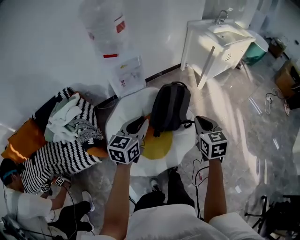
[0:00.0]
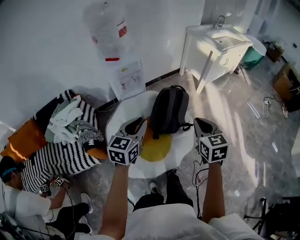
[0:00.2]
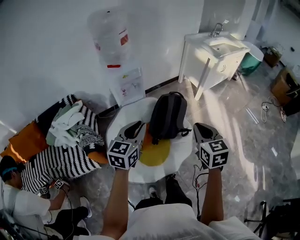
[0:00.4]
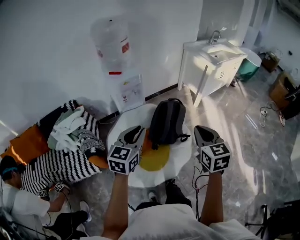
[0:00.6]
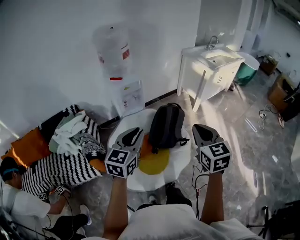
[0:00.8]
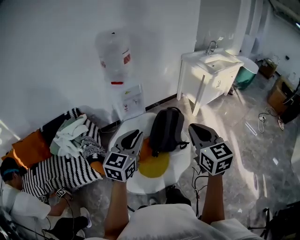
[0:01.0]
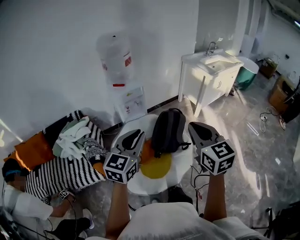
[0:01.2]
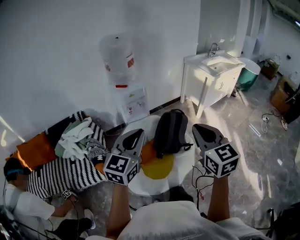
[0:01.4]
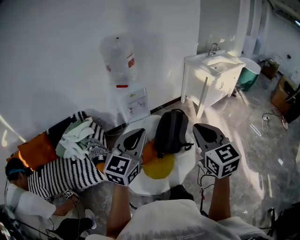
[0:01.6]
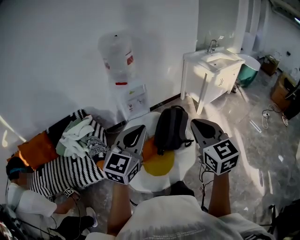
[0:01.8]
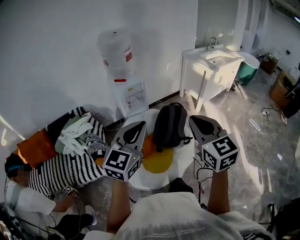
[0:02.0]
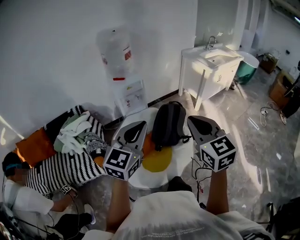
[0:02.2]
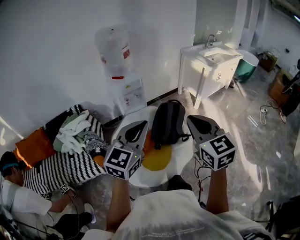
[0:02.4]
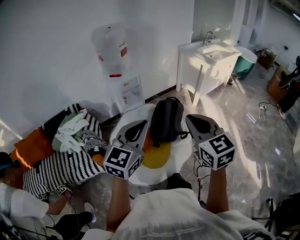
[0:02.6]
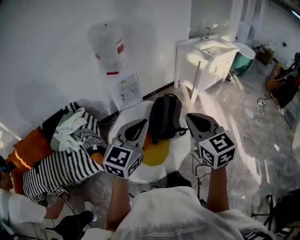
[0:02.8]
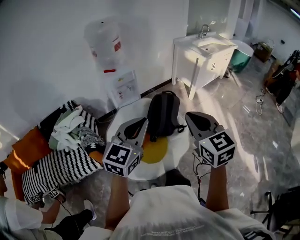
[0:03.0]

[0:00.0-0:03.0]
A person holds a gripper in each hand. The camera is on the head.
0:00.0 to 0:01.6: The grippers both shift upward and backward by roughly 25 cm. The right gripper swivels some 20 degrees, while the left gripper turns by approximately 30 degrees.
0:01.6 to 0:03.0: The left gripper changes place by approximately 5 cm.

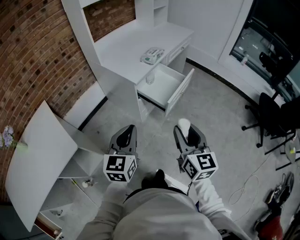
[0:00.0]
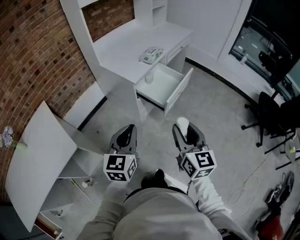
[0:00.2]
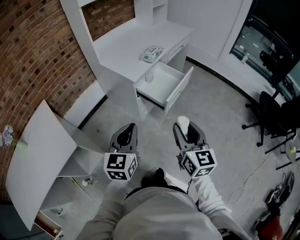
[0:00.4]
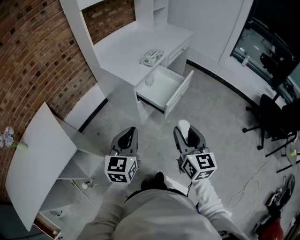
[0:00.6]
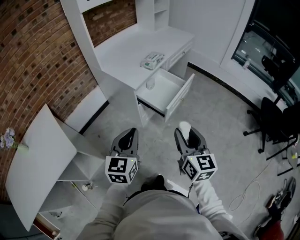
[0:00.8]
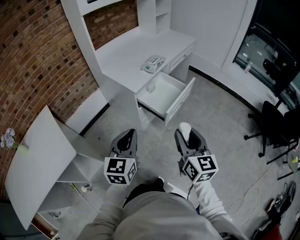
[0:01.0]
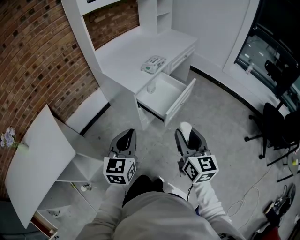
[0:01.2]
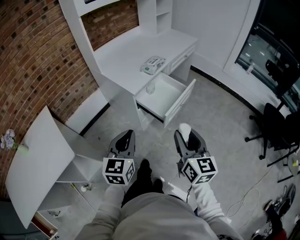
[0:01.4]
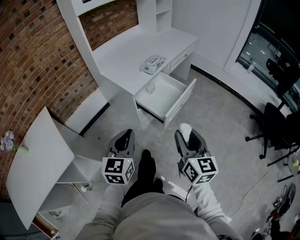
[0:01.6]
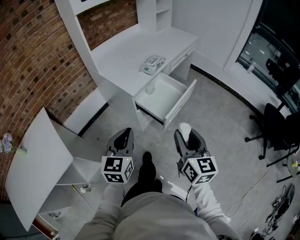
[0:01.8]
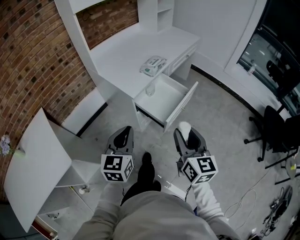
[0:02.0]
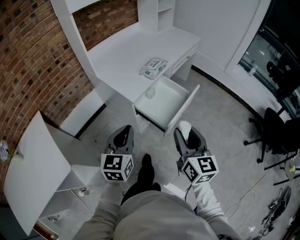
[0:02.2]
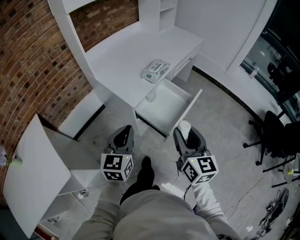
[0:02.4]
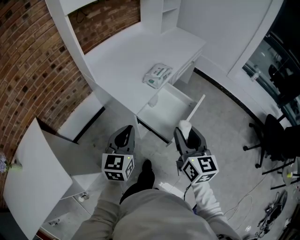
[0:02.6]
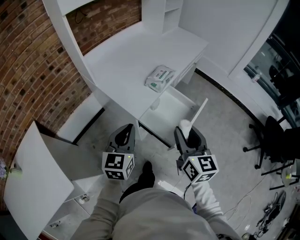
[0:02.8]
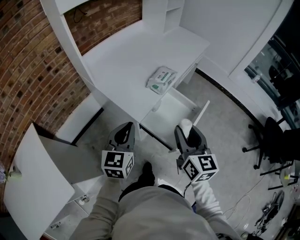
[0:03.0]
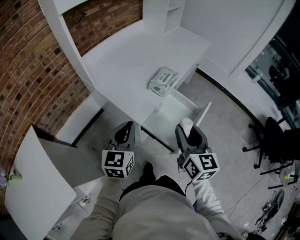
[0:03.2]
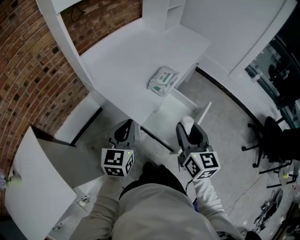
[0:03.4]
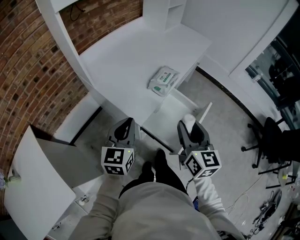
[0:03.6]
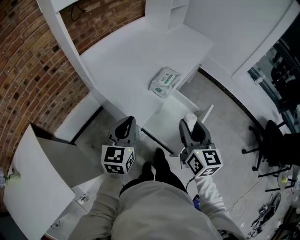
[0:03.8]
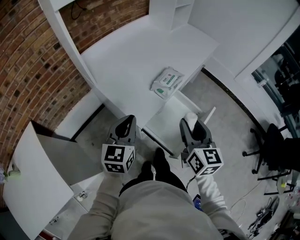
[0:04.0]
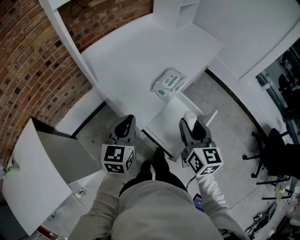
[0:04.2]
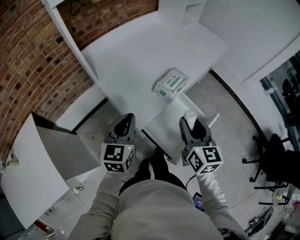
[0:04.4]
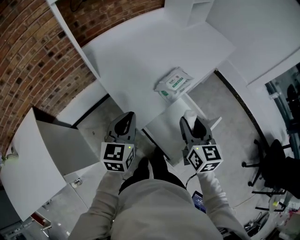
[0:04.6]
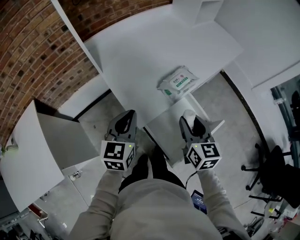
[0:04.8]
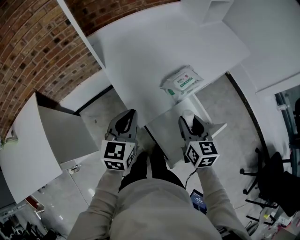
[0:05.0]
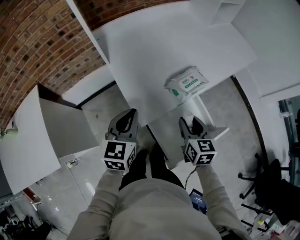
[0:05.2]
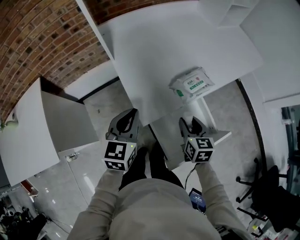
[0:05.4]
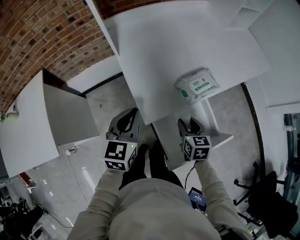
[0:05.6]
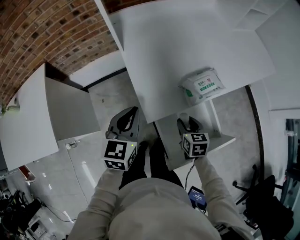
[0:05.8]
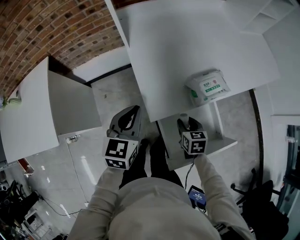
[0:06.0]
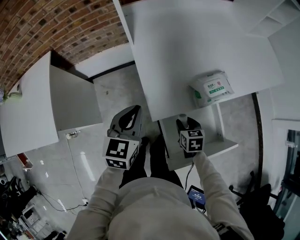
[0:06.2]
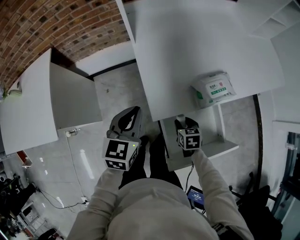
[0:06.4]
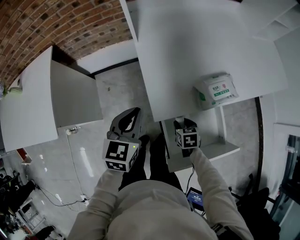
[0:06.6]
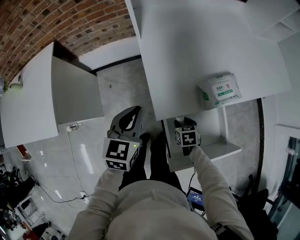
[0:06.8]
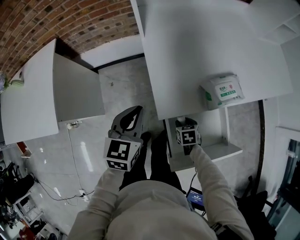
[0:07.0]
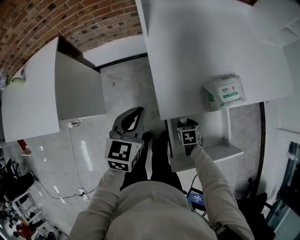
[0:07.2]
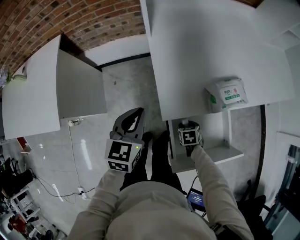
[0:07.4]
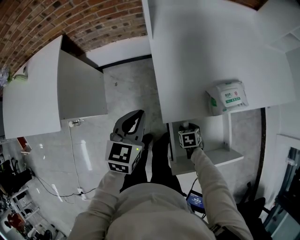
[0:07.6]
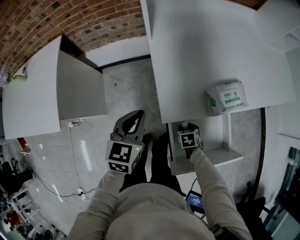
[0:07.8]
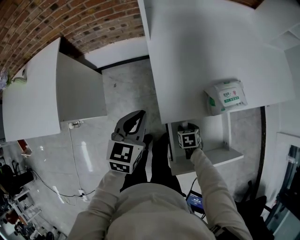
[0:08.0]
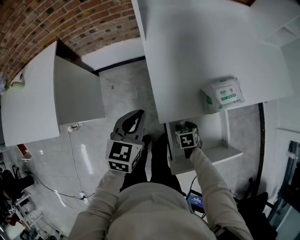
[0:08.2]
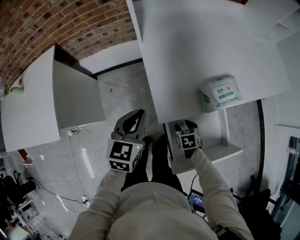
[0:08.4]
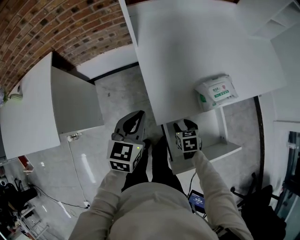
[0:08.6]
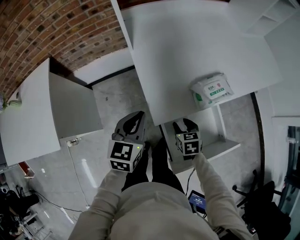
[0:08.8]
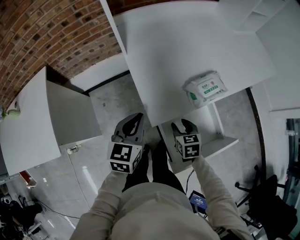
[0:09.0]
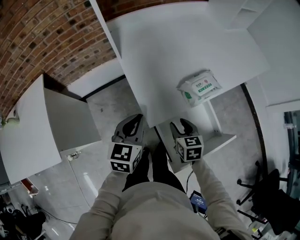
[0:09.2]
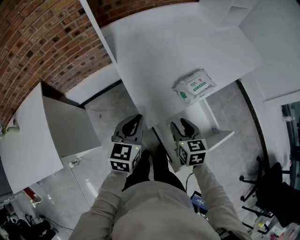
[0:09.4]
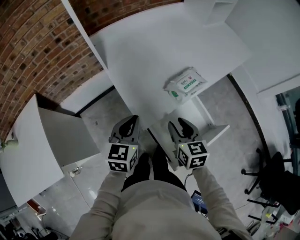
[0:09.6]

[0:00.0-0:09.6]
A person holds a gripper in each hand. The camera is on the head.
0:00.0 to 0:01.6: Both grippers move forward, approximately 5 cm.
0:01.6 to 0:03.2: The two grippers go approximately 25 cm forward.
0:03.2 to 0:04.8: The left gripper moves forward, some 10 cm. The right gripper is displaced forward and downward by roughly 15 cm.
0:04.8 to 0:06.4: The left gripper shifts about 10 cm downward and to the left, and swivels approximately 20 degrees. Meanwhile the right gripper is displaced downward by about 25 cm, and tilts its fingers some 40 degrees downward.
0:06.4 to 0:08.0: The right gripper travels downward by about 10 cm.
0:08.0 to 0:09.6: The right gripper heads upward, covering roughly 25 cm, and angles its fingers upward, by roughly 40 degrees; the left gripper heads to the right, covering approximately 5 cm.

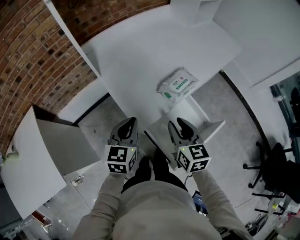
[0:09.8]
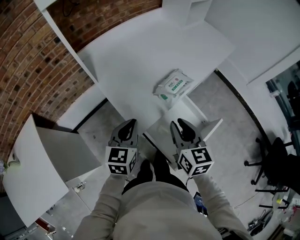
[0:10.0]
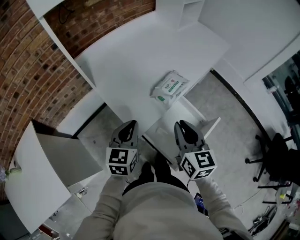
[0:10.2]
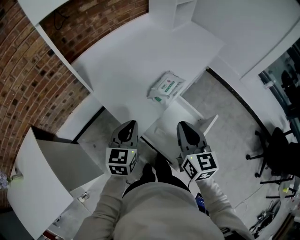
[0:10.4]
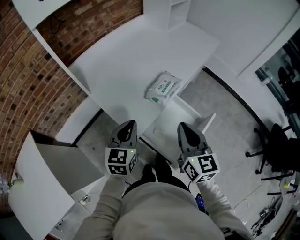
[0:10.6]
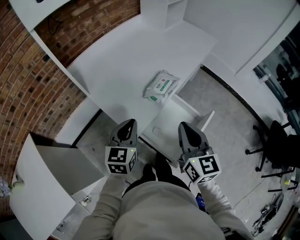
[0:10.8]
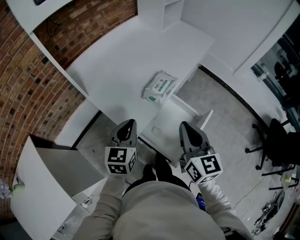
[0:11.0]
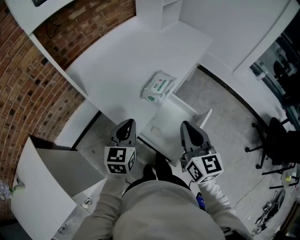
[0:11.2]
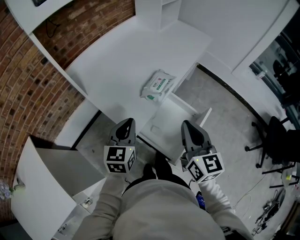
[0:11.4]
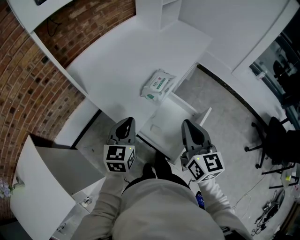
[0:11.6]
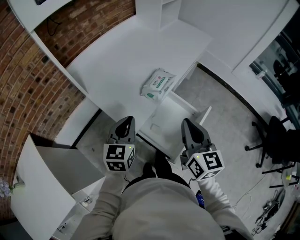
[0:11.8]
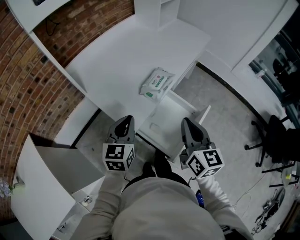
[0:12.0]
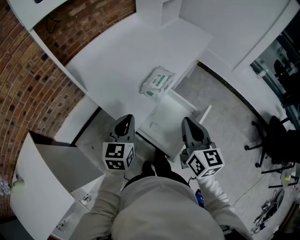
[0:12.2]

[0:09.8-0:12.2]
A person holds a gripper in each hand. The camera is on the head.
0:09.8 to 0:11.0: The right gripper heads upward and to the right, covering about 10 cm, turns by roughly 20 degrees, and closes.
0:11.0 to 0:12.2: There are only small adjustments of the grippers.

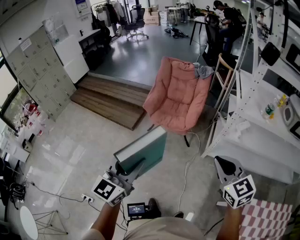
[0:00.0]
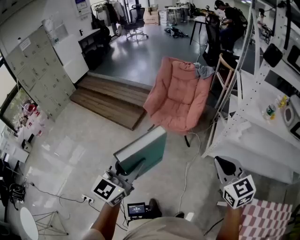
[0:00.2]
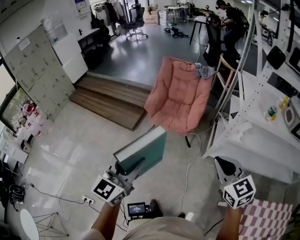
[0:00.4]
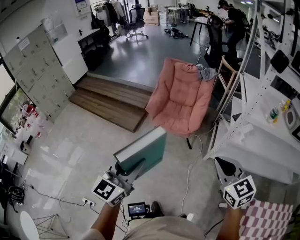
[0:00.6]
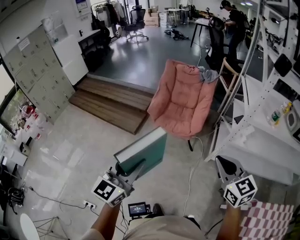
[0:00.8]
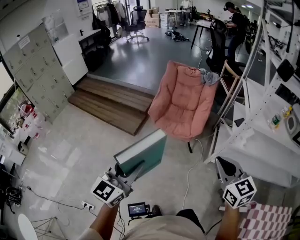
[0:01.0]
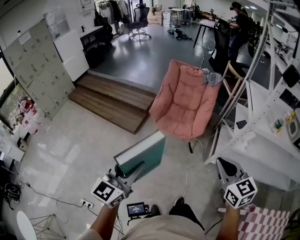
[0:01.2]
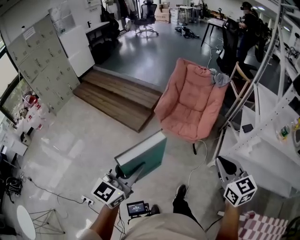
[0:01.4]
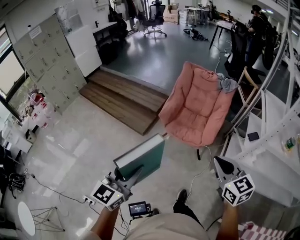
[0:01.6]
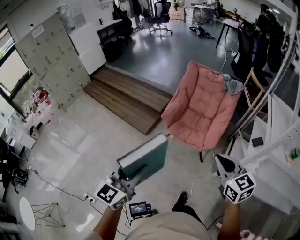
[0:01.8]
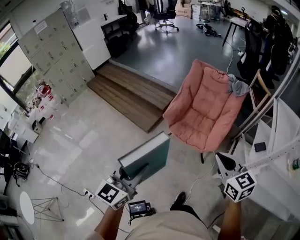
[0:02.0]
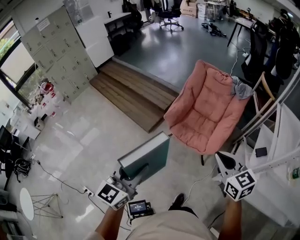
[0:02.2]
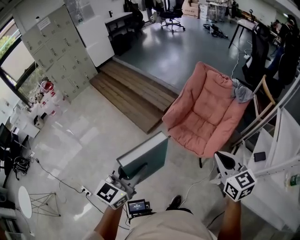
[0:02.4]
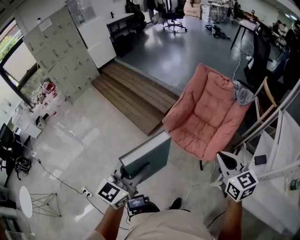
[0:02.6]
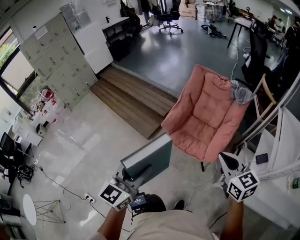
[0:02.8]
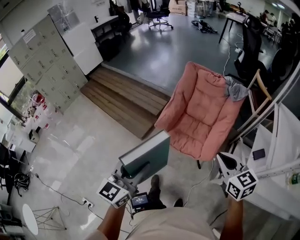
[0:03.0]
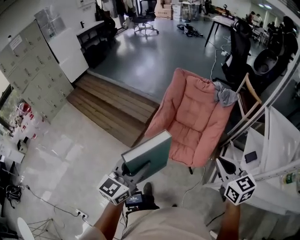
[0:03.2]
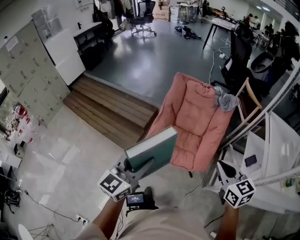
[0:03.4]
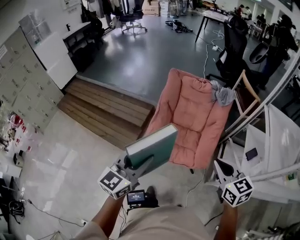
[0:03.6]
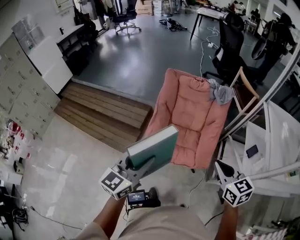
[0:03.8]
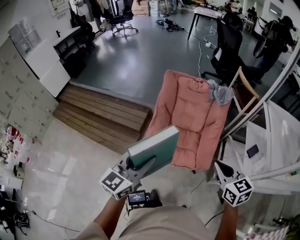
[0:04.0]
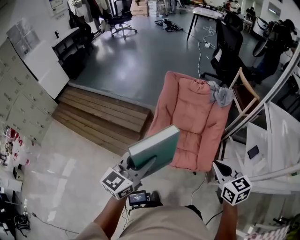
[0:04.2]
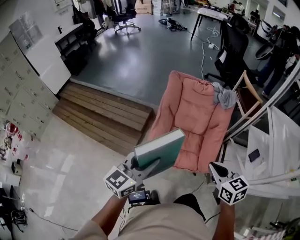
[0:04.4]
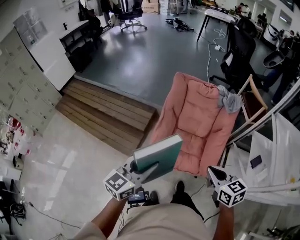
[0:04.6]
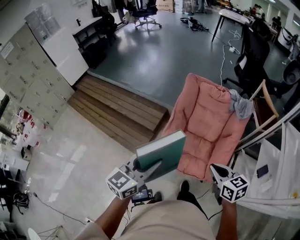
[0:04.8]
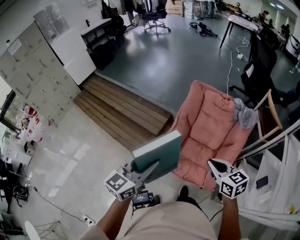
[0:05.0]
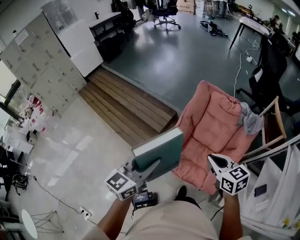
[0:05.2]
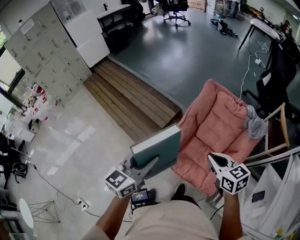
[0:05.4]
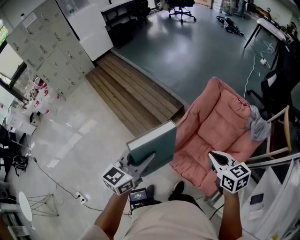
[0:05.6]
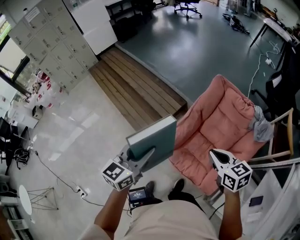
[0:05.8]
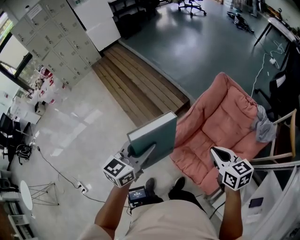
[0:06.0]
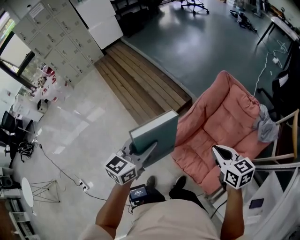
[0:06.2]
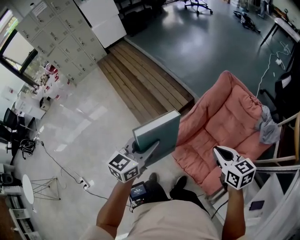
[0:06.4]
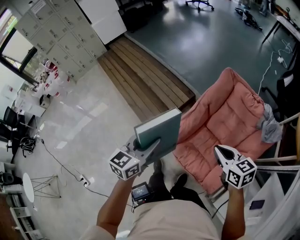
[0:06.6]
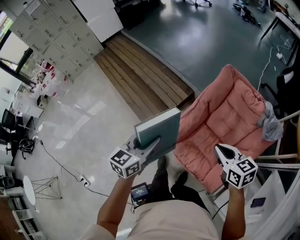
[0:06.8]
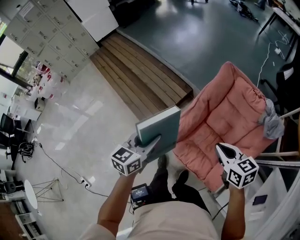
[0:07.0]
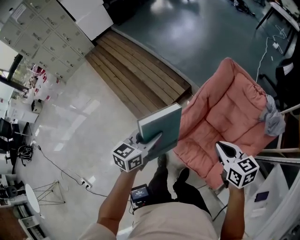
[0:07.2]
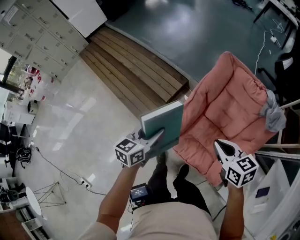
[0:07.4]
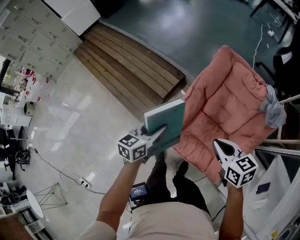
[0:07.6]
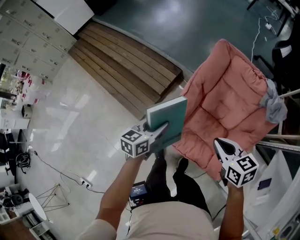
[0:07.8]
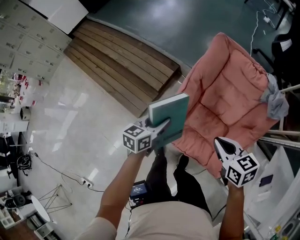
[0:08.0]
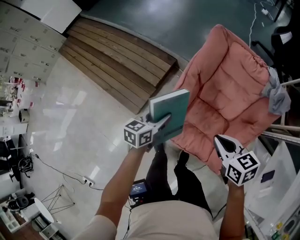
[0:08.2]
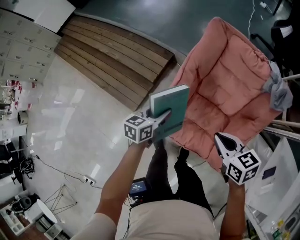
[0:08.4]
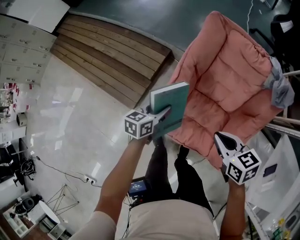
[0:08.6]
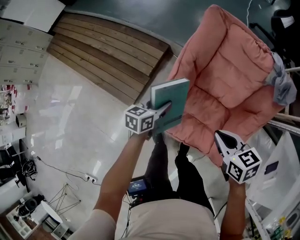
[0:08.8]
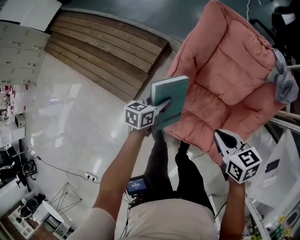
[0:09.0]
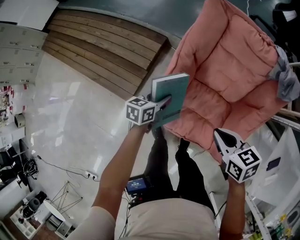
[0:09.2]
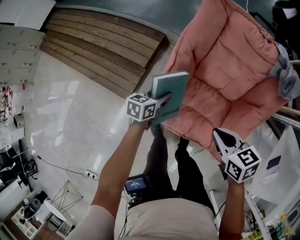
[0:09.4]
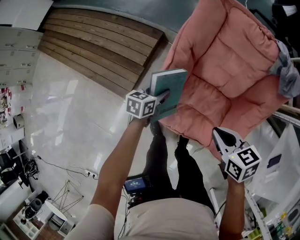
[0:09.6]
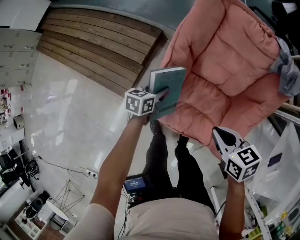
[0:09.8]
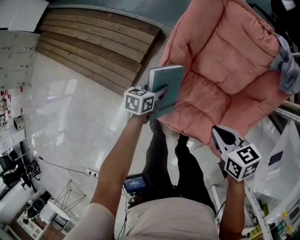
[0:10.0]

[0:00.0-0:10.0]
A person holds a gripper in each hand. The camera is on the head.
0:00.0 to 0:01.4: The left gripper travels to the left and forward by some 15 cm, while the right gripper heads forward and to the left, covering some 20 cm.
0:01.4 to 0:02.8: The right gripper moves forward, roughly 30 cm. The left gripper moves forward and to the right, approximately 25 cm.
0:02.8 to 0:04.2: The right gripper moves forward and to the left, approximately 15 cm, and rotates about 20 degrees; the left gripper shifts about 30 cm forward, and changes its angle by some 30 degrees.
0:04.2 to 0:05.8: The right gripper shifts by some 25 cm, and changes its angle by about 30 degrees, while the left gripper swings up and down, roughly 5 cm each way, with 2 reversals, and changes its angle by some 30 degrees.
0:05.8 to 0:07.2: The left gripper travels downward and forward by roughly 15 cm, while the right gripper is displaced downward by approximately 5 cm.
0:07.2 to 0:08.6: The right gripper is displaced downward by about 15 cm. The left gripper heads downward, forward and to the right, covering roughly 30 cm, and swivels approximately 20 degrees.
0:08.6 to 0:10.0: The left gripper travels downward by approximately 15 cm. The right gripper goes some 10 cm downward.
